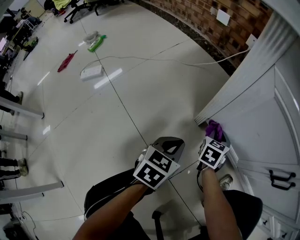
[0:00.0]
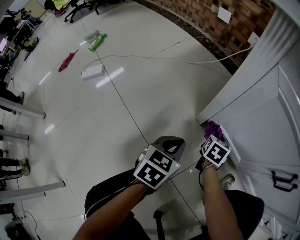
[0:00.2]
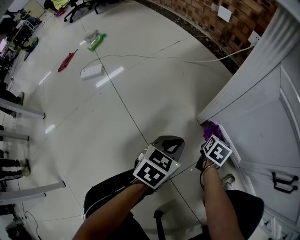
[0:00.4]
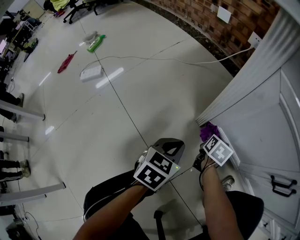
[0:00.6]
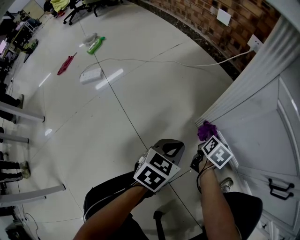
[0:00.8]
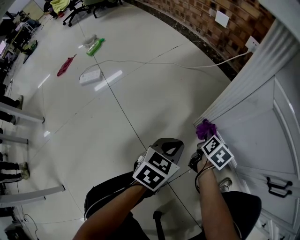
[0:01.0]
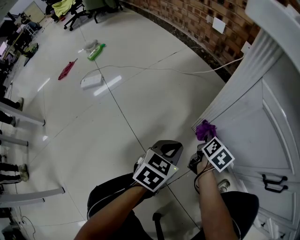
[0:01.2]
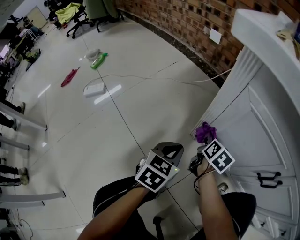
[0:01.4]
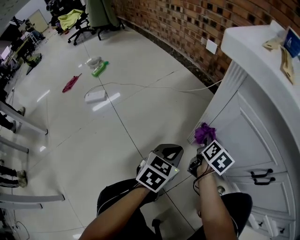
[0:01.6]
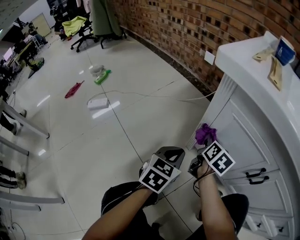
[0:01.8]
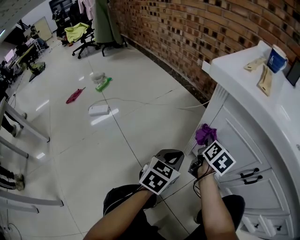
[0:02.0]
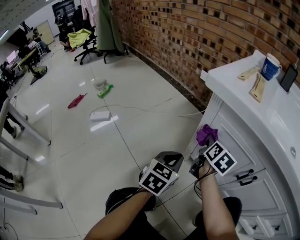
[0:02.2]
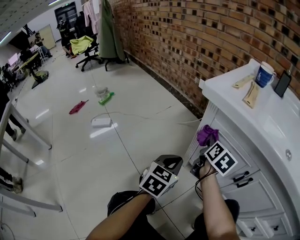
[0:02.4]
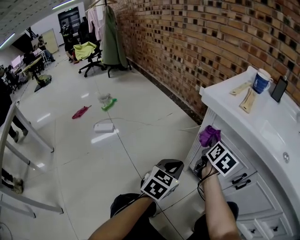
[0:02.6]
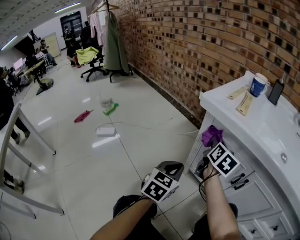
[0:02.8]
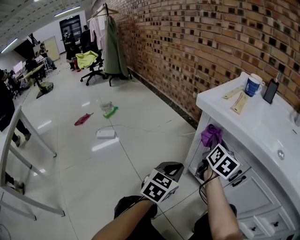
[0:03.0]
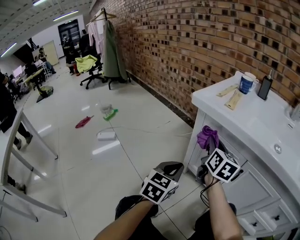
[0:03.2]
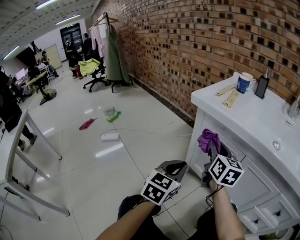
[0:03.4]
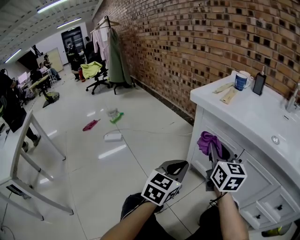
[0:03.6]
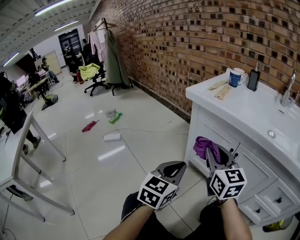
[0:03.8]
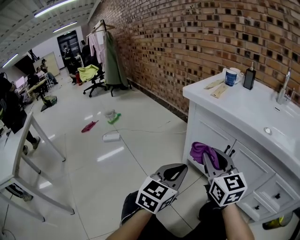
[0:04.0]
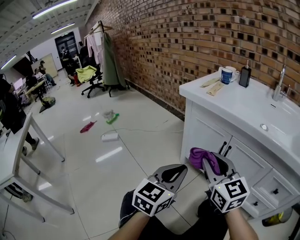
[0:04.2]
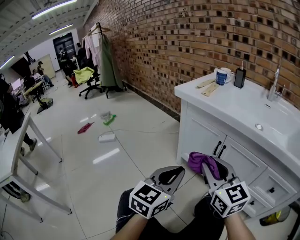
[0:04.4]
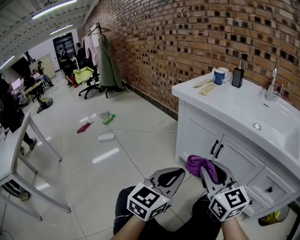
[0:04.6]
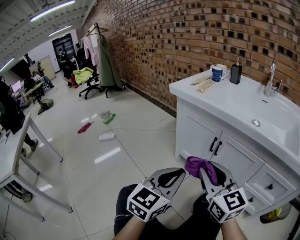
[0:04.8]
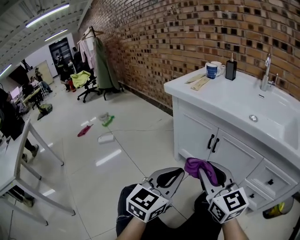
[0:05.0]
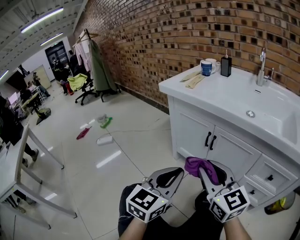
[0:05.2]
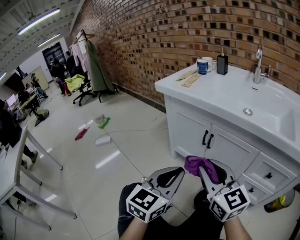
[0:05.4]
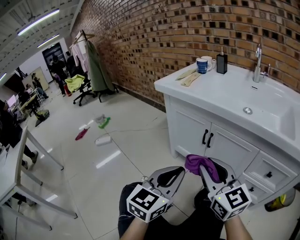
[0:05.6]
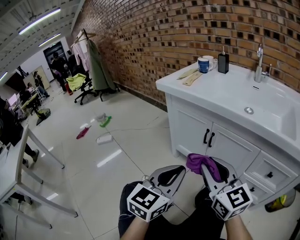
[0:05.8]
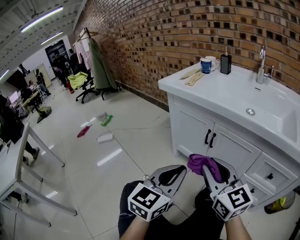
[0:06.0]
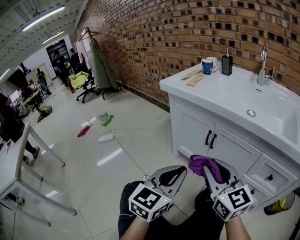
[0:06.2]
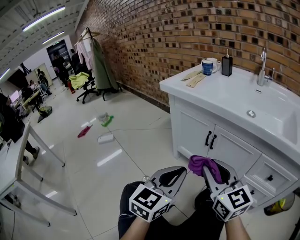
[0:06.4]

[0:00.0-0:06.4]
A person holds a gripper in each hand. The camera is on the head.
0:00.0 to 0:01.6: Both grippers move upward, some 10 cm. The right gripper rotates about 40 degrees.
0:01.6 to 0:03.2: The left gripper moves upward and backward, roughly 20 cm; the right gripper shifts some 30 cm upward, and changes its angle by about 30 degrees.
0:03.2 to 0:04.8: The left gripper moves backward, to the right and upward, some 25 cm, while the right gripper goes about 30 cm backward, and turns by some 30 degrees.
0:04.8 to 0:06.4: The grippers move only a little.

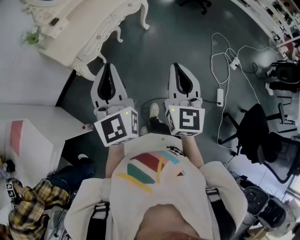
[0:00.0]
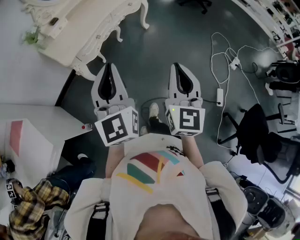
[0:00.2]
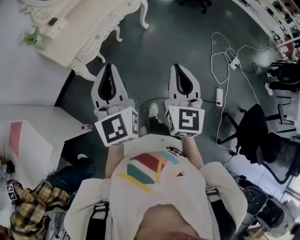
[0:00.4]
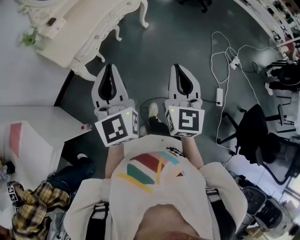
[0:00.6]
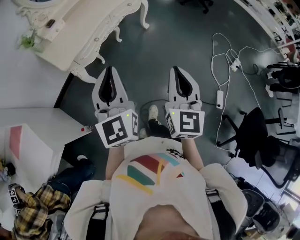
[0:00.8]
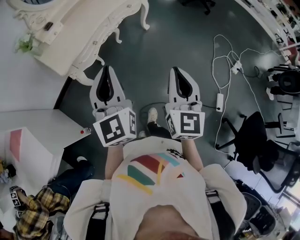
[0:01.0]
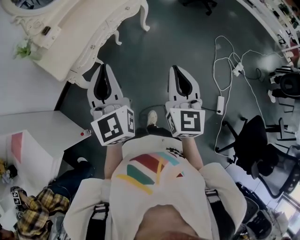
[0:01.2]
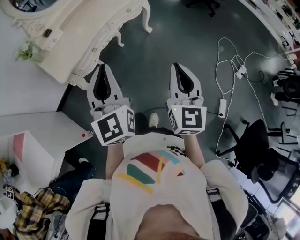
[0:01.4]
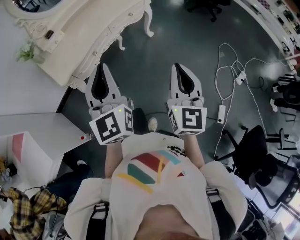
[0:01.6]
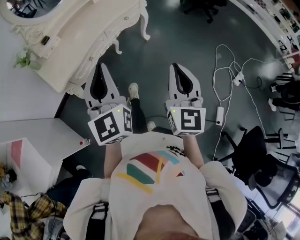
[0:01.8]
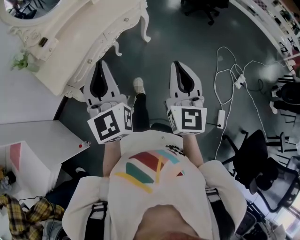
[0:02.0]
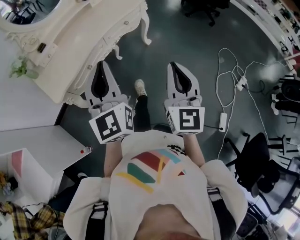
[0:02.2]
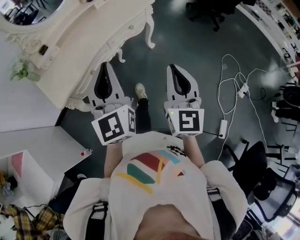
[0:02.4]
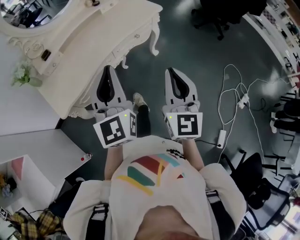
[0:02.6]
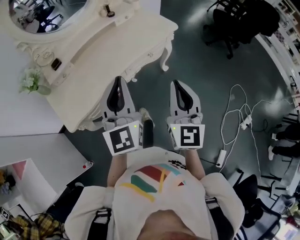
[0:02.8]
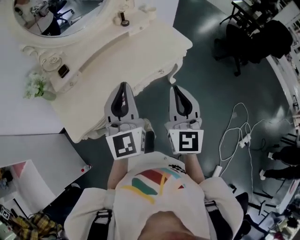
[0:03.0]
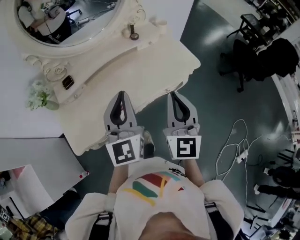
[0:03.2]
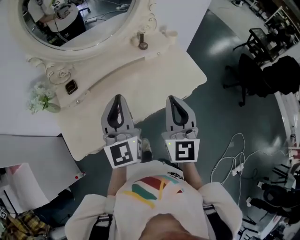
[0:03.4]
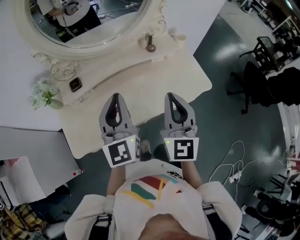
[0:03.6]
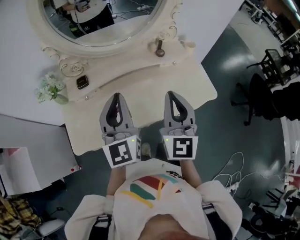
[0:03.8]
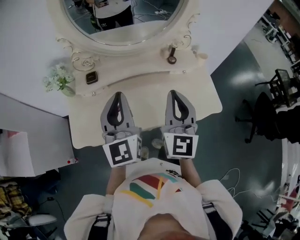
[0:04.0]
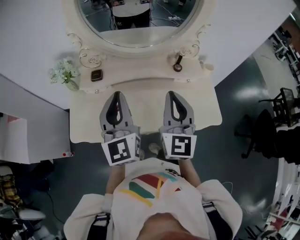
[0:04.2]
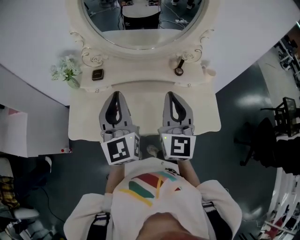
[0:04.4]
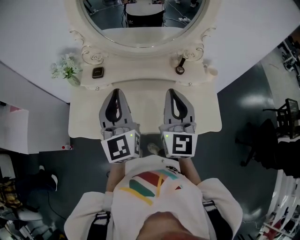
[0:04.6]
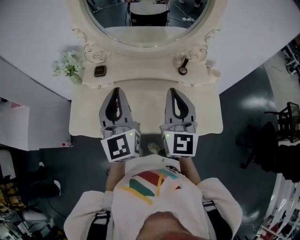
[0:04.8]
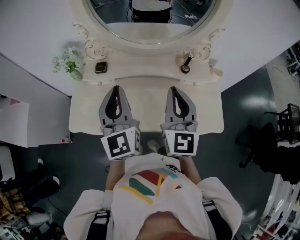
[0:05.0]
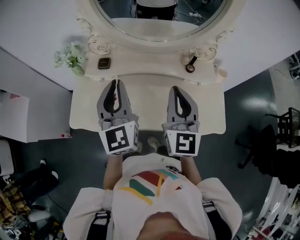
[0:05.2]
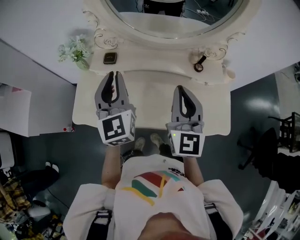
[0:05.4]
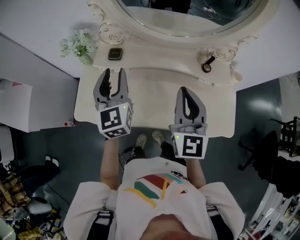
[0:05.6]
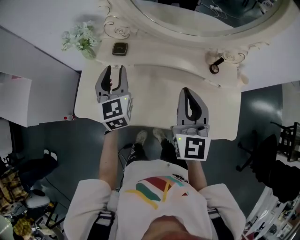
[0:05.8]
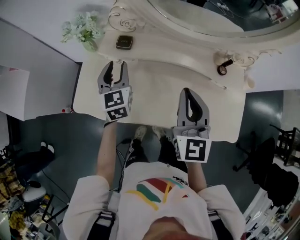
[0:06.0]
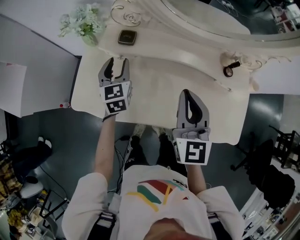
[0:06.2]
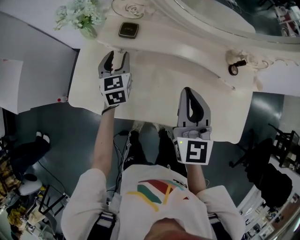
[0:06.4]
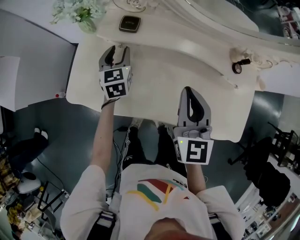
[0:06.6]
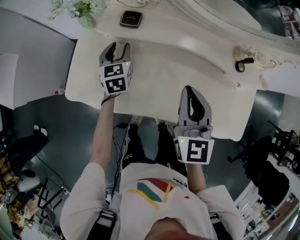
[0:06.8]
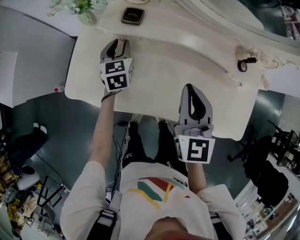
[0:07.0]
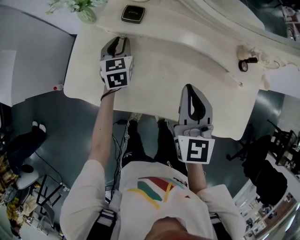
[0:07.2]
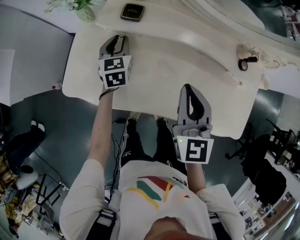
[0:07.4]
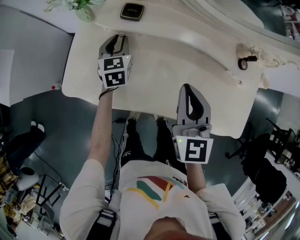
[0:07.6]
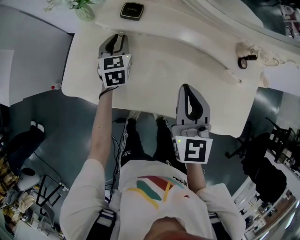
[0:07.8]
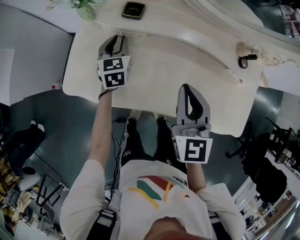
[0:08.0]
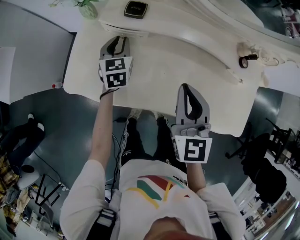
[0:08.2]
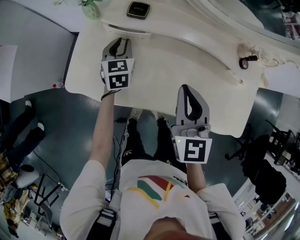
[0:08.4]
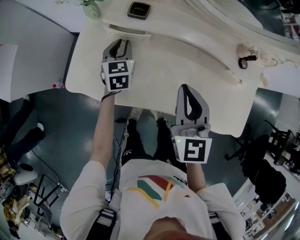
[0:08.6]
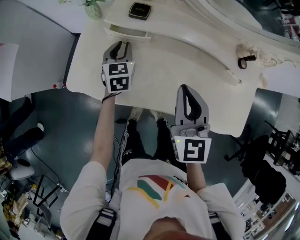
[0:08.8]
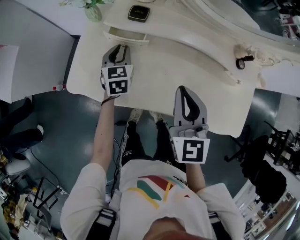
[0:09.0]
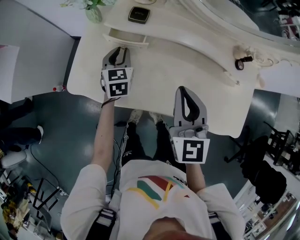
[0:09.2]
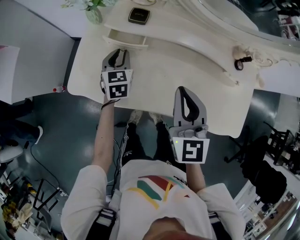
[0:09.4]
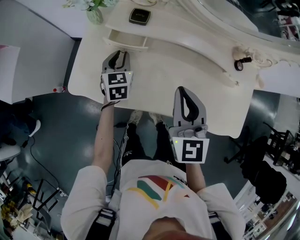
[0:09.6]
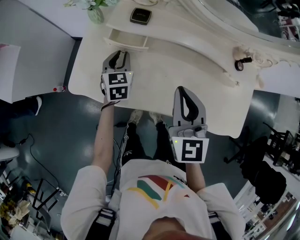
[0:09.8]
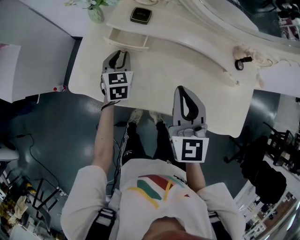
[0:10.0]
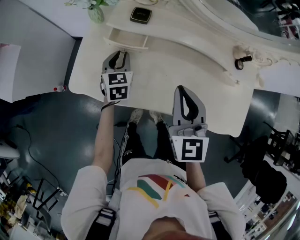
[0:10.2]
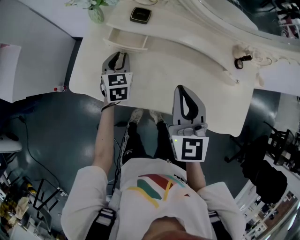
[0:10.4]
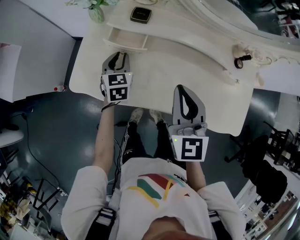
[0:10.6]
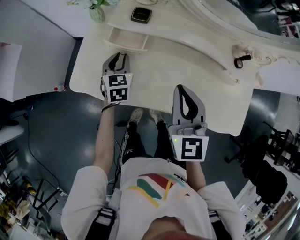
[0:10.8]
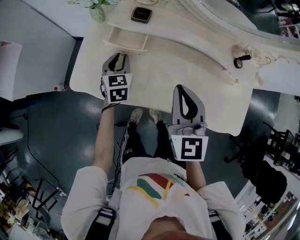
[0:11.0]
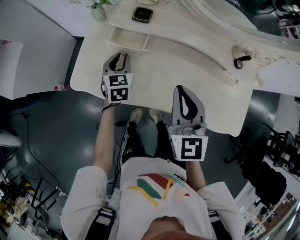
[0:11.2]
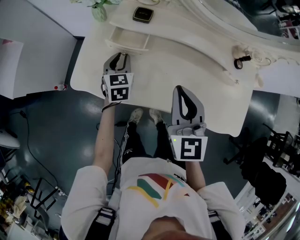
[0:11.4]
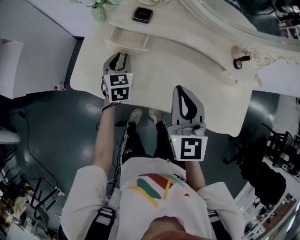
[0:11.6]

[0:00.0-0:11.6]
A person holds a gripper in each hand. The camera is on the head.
0:00.0 to 0:01.4: The right gripper goes approximately 15 cm forward and to the right; the left gripper goes about 15 cm forward.
0:01.4 to 0:02.8: Both grippers travel together forward, approximately 30 cm.
0:02.8 to 0:04.4: The right gripper moves roughly 40 cm, and turns by roughly 40 degrees; the left gripper moves approximately 30 cm, and changes its angle by about 40 degrees.
0:04.4 to 0:05.8: The right gripper is displaced forward, downward and to the left by roughly 10 cm. Meanwhile the left gripper goes roughly 20 cm downward, forward and to the left, rotates roughly 20 degrees, and opens its fingers.
0:05.8 to 0:07.2: The right gripper is displaced downward and to the left by roughly 10 cm; the left gripper is displaced downward by approximately 20 cm.
0:07.2 to 0:08.8: The grippers stay close to where they were, moving slightly.
0:08.8 to 0:11.6: The grippers move only a little.

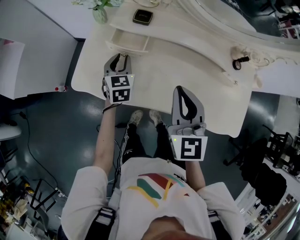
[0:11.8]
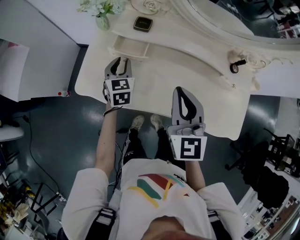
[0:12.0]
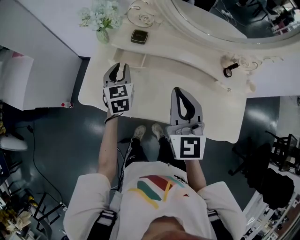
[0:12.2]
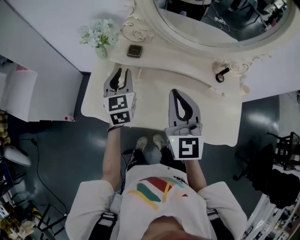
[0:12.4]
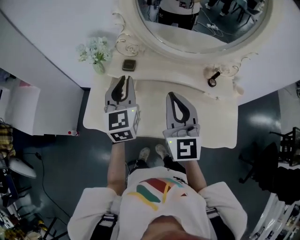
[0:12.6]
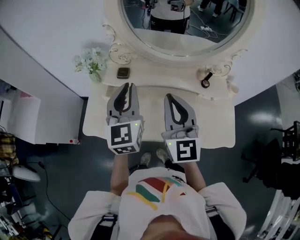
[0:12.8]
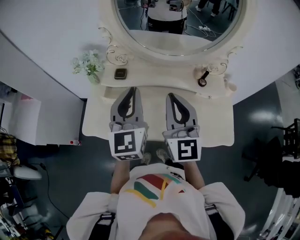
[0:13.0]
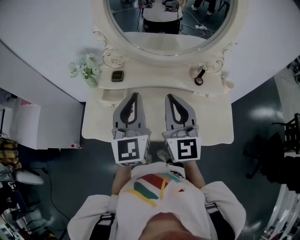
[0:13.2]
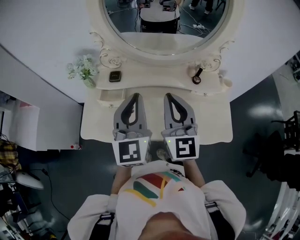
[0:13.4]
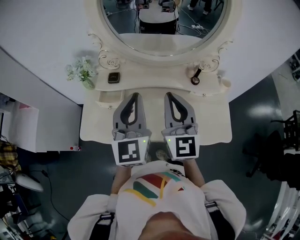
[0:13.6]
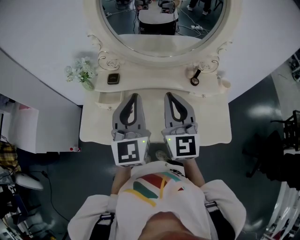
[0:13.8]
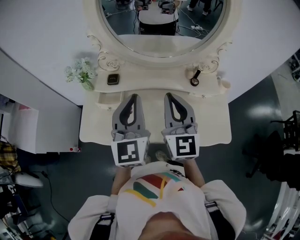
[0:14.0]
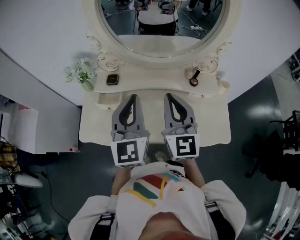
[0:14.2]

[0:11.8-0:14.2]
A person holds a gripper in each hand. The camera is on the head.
0:11.8 to 0:13.0: The left gripper travels upward and to the right by roughly 35 cm, and tips its fingers upward by roughly 30 degrees. Meanwhile the right gripper is displaced upward and to the right by about 20 cm, and swivels approximately 20 degrees.
0:13.0 to 0:14.2: The grippers stay close to where they were, moving slightly.

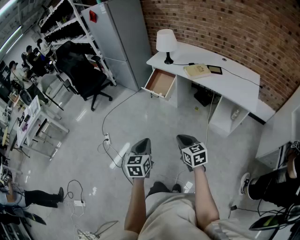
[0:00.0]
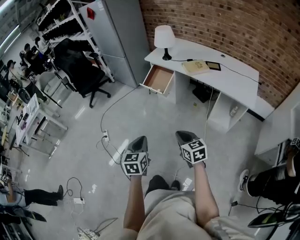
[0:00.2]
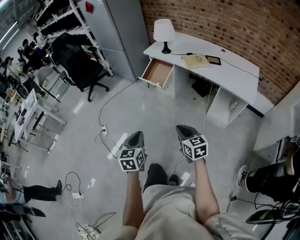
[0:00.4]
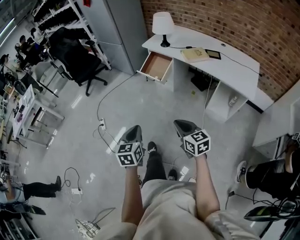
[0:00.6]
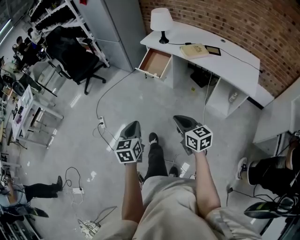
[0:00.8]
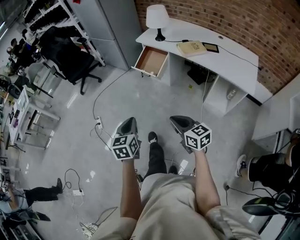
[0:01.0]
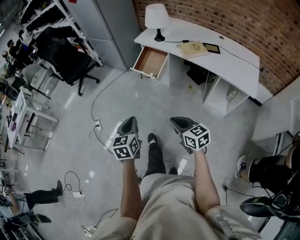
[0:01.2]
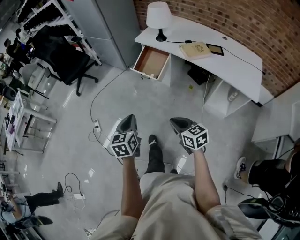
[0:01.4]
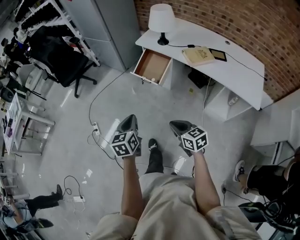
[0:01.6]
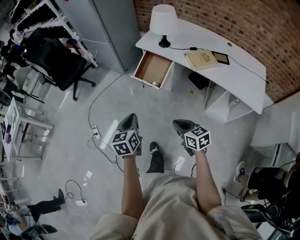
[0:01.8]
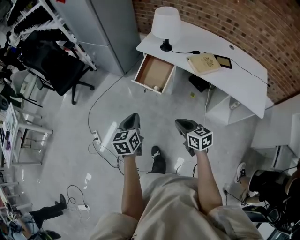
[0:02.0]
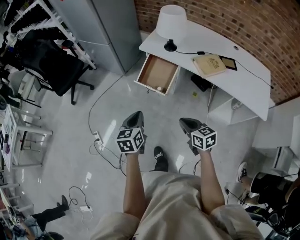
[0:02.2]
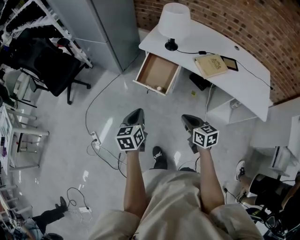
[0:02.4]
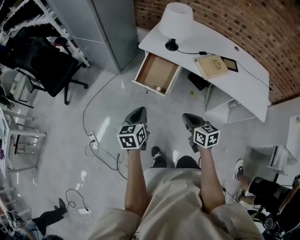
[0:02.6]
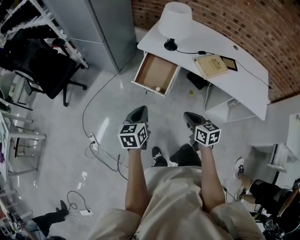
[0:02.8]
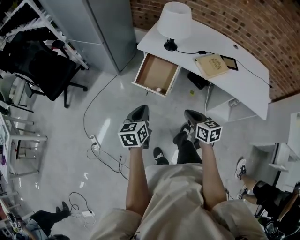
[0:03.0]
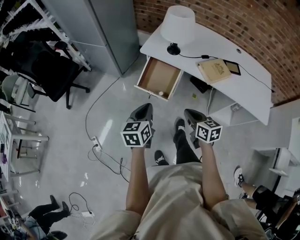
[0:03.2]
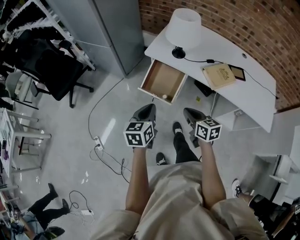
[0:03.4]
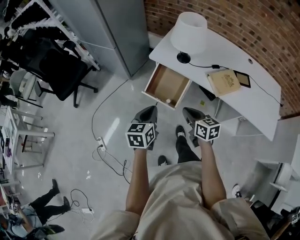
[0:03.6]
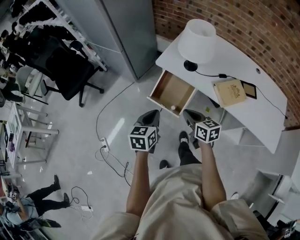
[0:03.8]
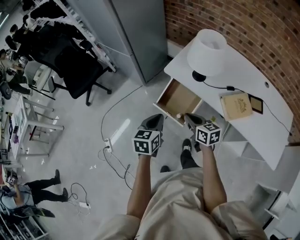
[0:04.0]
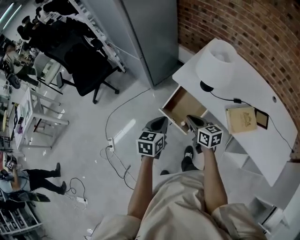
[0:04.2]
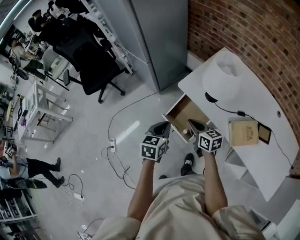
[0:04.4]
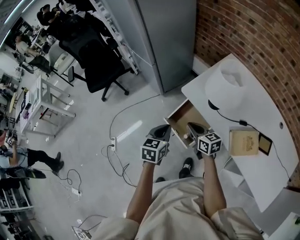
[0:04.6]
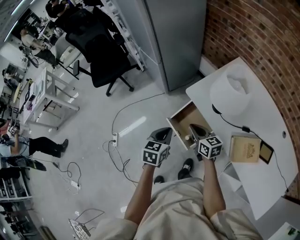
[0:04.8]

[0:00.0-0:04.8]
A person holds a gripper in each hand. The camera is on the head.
0:00.0 to 0:01.6: Both grippers move forward, roughly 20 cm.
0:01.6 to 0:03.2: The two grippers go about 30 cm forward. The right gripper rotates some 20 degrees.
0:03.2 to 0:04.8: The right gripper shifts about 30 cm forward, and rotates roughly 30 degrees; the left gripper travels forward by approximately 20 cm.
